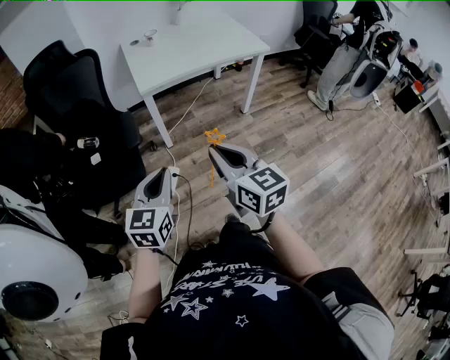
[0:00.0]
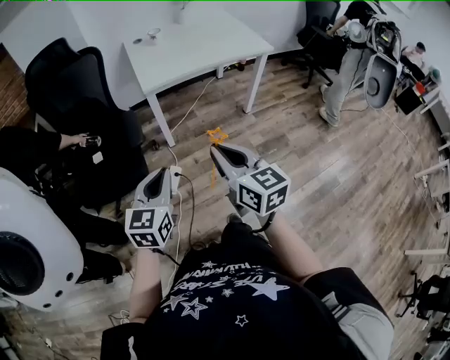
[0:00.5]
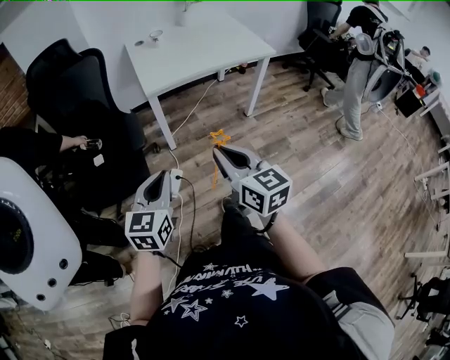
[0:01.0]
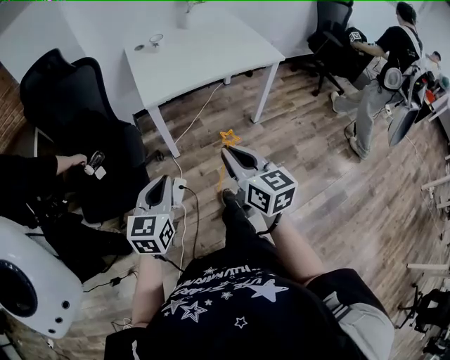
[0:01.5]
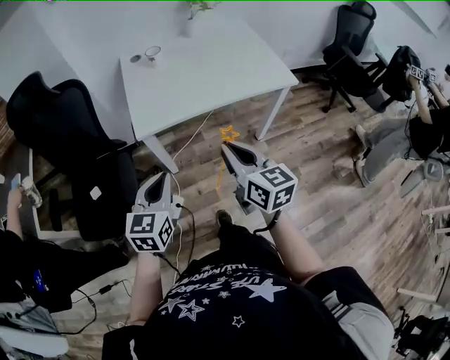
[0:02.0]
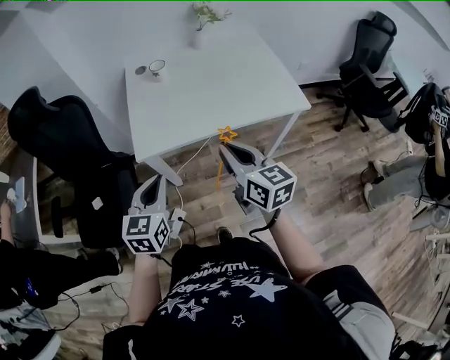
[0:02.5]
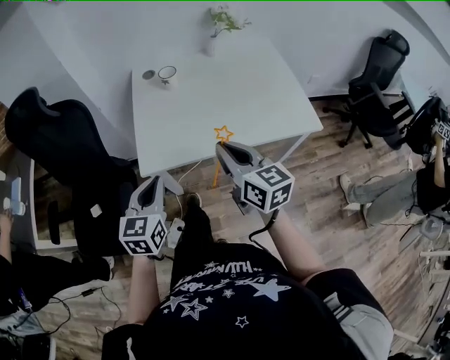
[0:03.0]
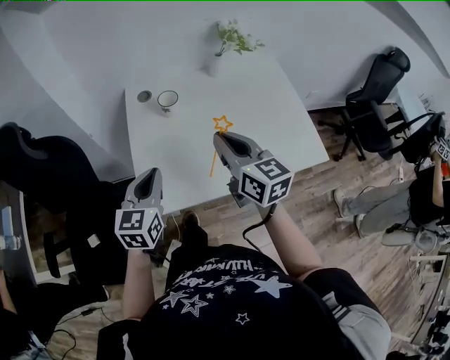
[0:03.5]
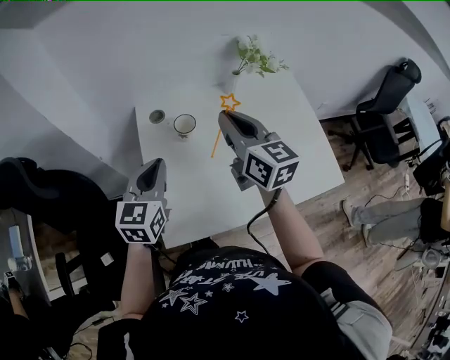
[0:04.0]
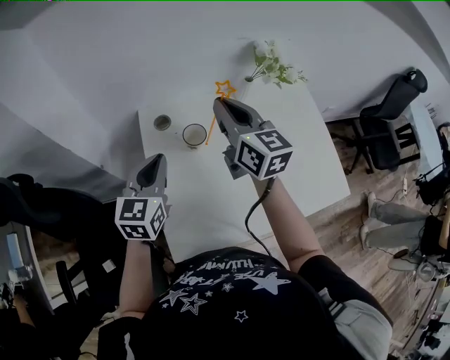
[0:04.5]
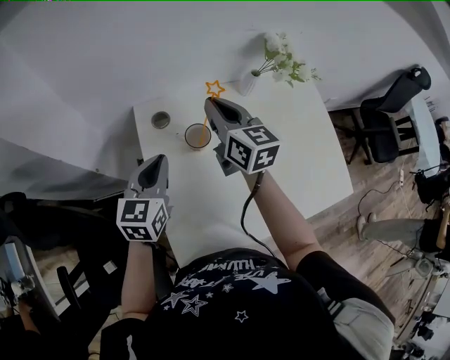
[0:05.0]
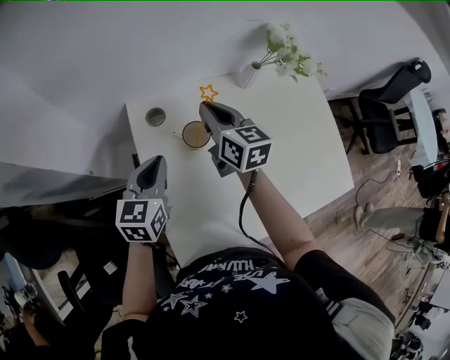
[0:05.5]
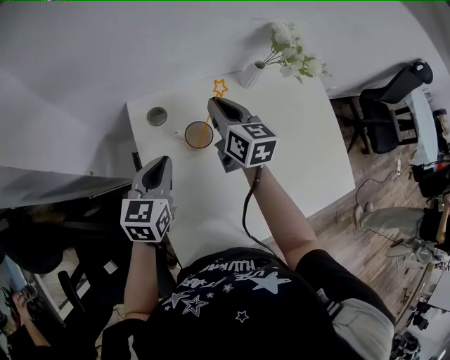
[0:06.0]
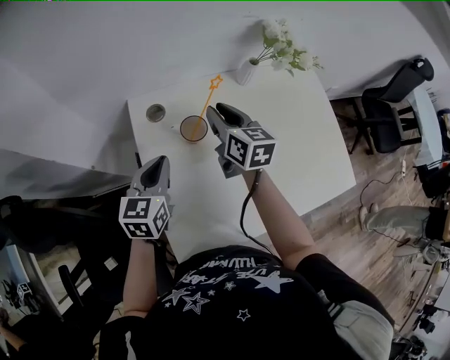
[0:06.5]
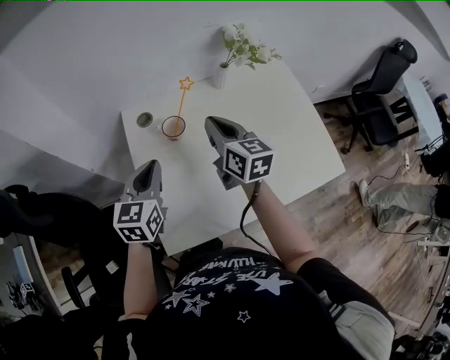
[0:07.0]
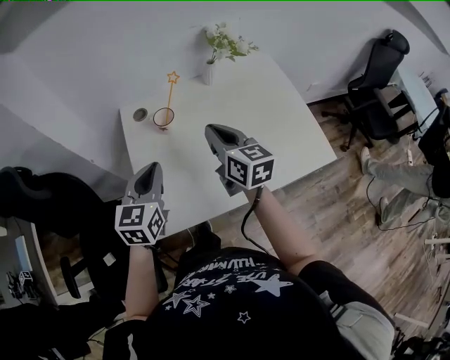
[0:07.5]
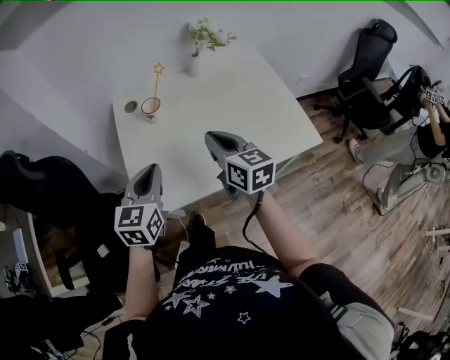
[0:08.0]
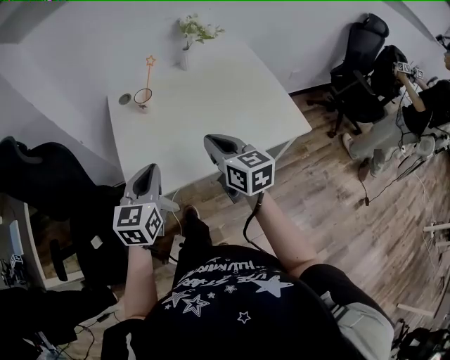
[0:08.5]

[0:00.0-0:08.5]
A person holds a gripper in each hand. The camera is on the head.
0:00.0 to 0:02.0: Both grippers move forward, about 30 cm.
0:02.0 to 0:04.0: Both grippers are carried forward, about 50 cm.
0:04.0 to 0:06.5: The left gripper shifts roughly 15 cm downward and forward. Meanwhile the right gripper heads downward and forward, covering some 20 cm, and opens up.
0:06.5 to 0:08.5: The right gripper is displaced backward by approximately 35 cm, and closes up. The left gripper travels backward and to the right by approximately 30 cm.

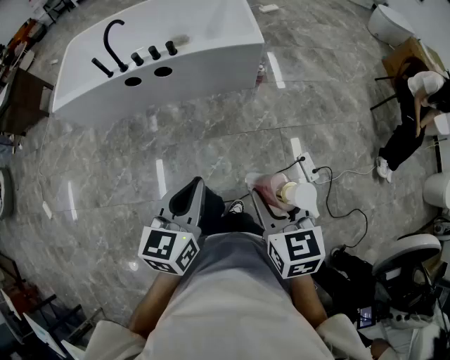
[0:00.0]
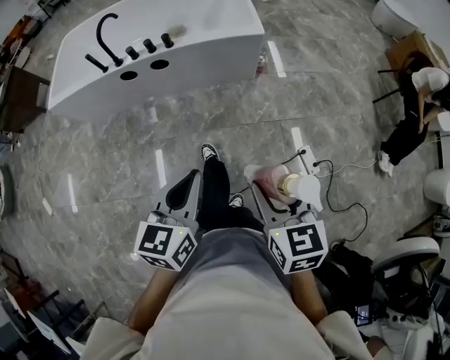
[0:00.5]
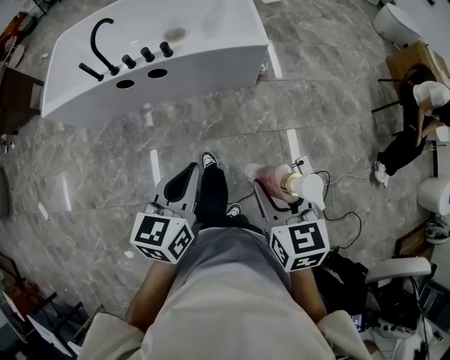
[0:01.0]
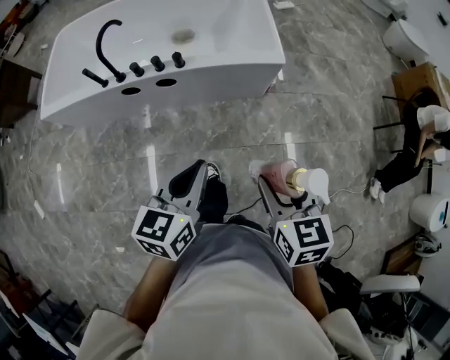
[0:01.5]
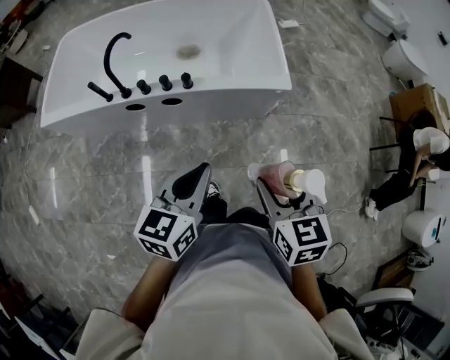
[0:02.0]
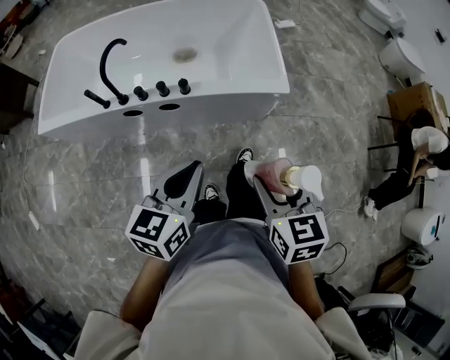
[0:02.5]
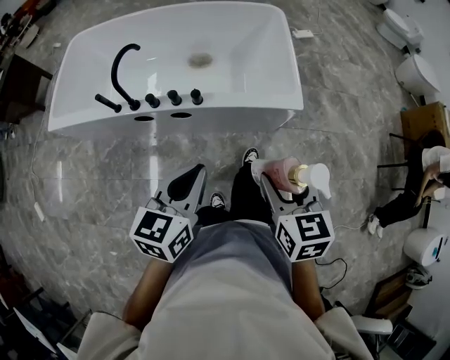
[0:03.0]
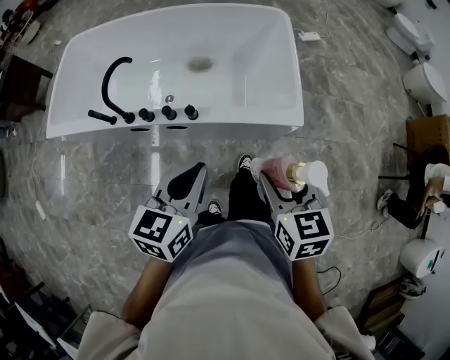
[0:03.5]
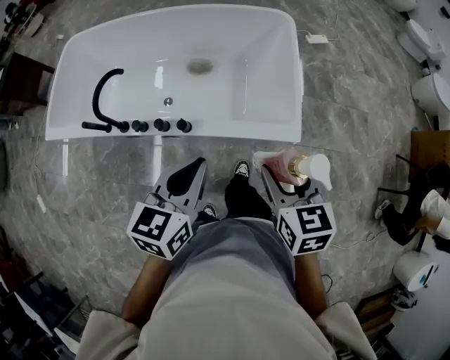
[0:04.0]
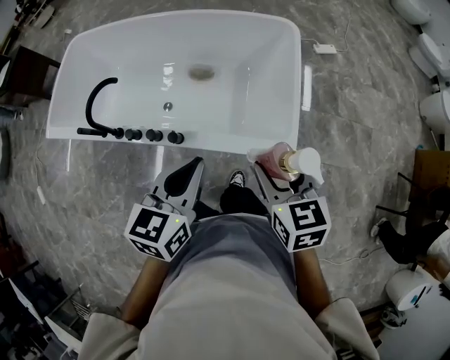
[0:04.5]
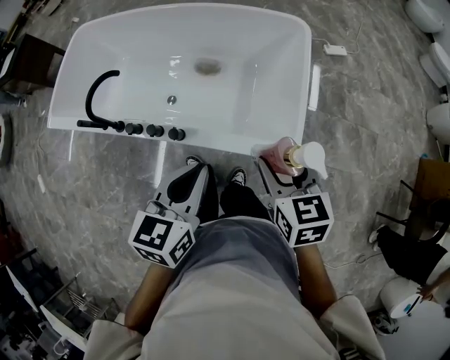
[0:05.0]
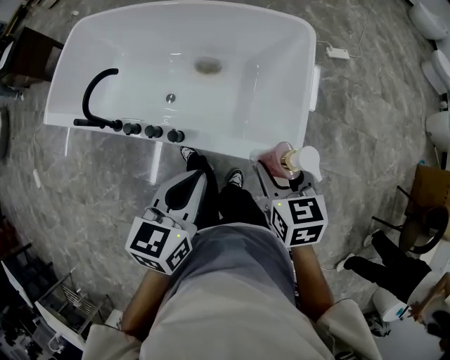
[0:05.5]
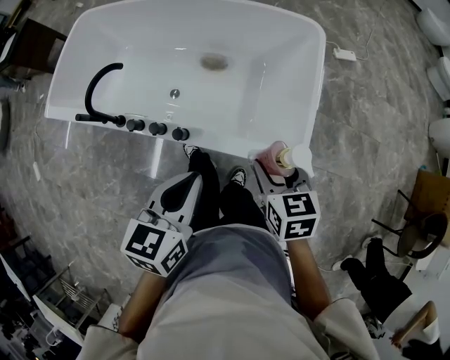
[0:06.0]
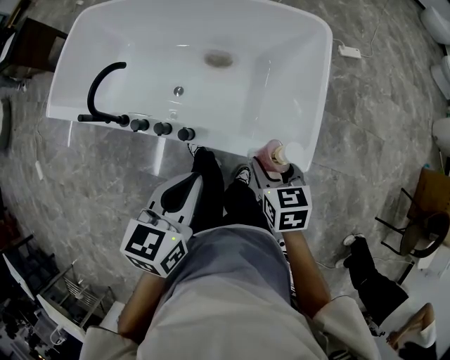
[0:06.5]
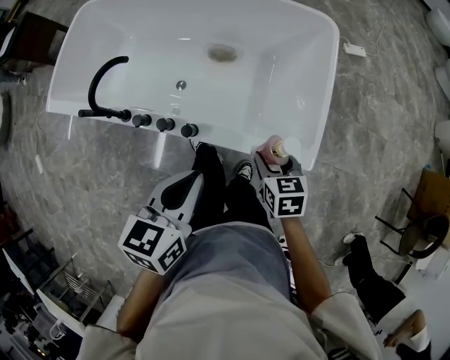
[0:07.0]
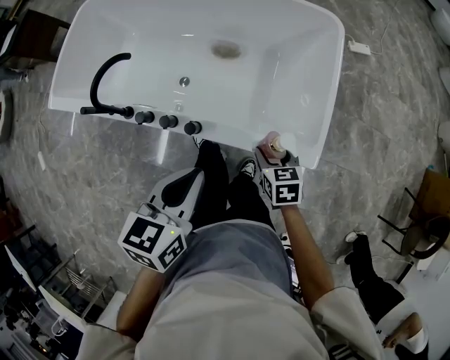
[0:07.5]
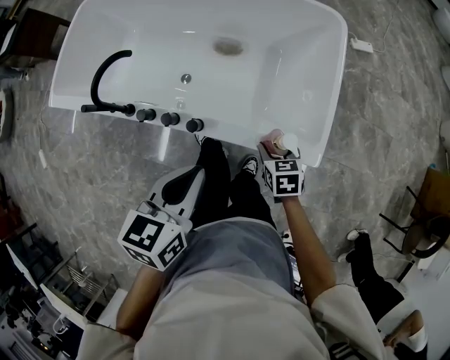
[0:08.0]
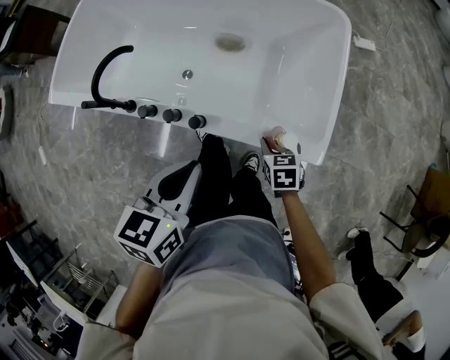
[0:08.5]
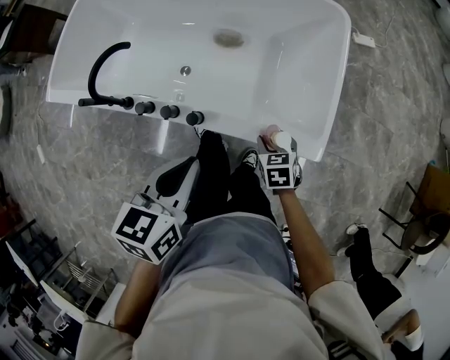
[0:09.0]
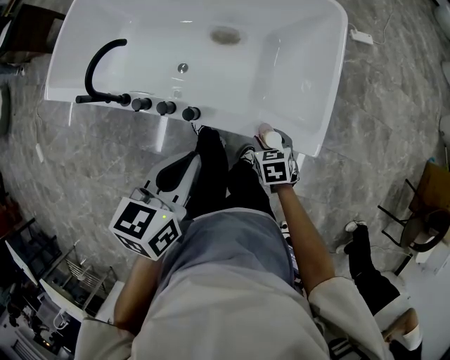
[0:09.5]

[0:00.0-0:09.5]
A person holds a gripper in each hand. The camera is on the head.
0:00.0 to 0:02.0: The grippers both shift forward by roughly 35 cm.
0:02.0 to 0:04.0: Both grippers move forward, approximately 30 cm.
0:04.0 to 0:05.5: The left gripper heads forward, covering some 5 cm, while the right gripper travels forward and downward by about 15 cm.
0:05.5 to 0:07.5: The right gripper travels downward by roughly 15 cm, while the left gripper goes some 5 cm to the left.
0:07.5 to 0:09.5: The right gripper goes about 5 cm downward.

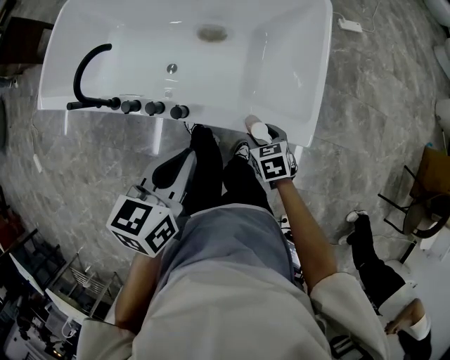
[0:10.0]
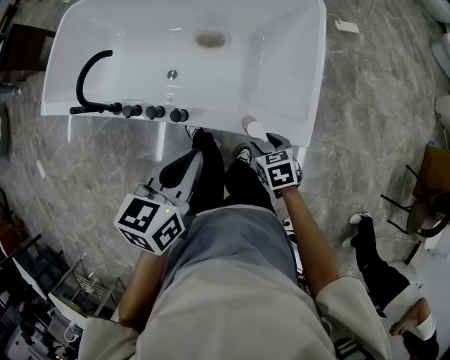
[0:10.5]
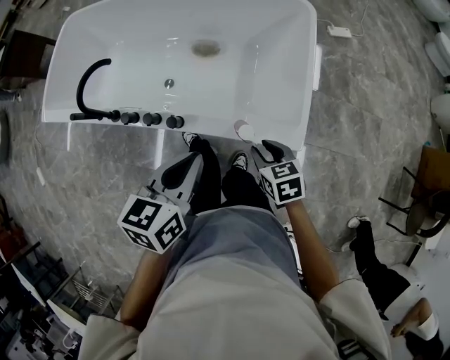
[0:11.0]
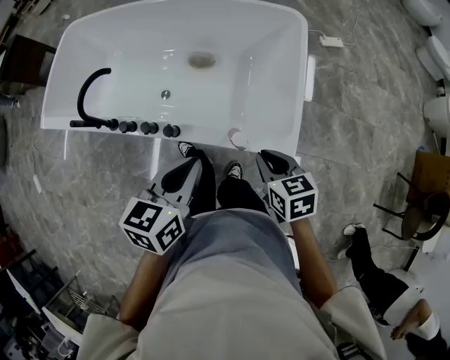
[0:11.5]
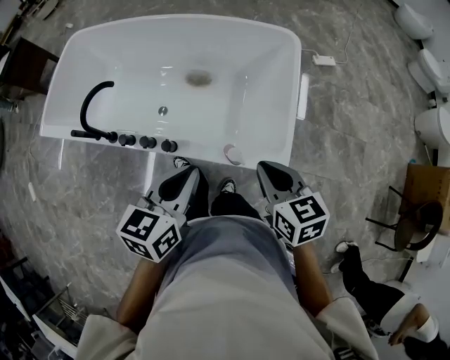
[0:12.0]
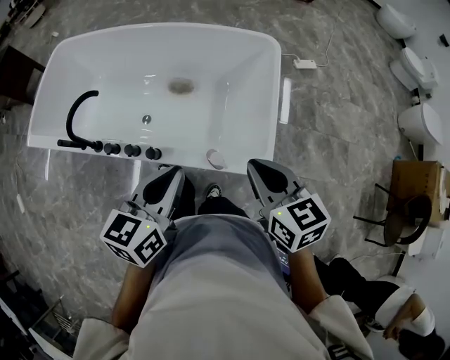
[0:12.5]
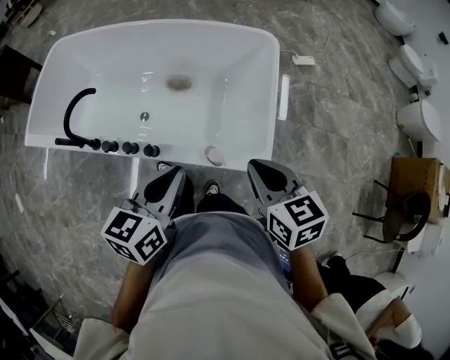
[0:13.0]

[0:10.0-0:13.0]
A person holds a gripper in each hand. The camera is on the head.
0:10.0 to 0:11.5: The left gripper moves some 5 cm; the right gripper goes roughly 15 cm upward, and closes up.
0:11.5 to 0:13.0: The right gripper shifts some 15 cm upward.

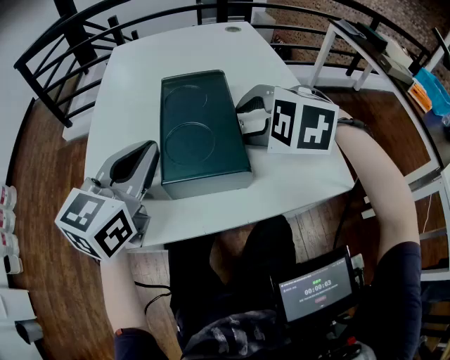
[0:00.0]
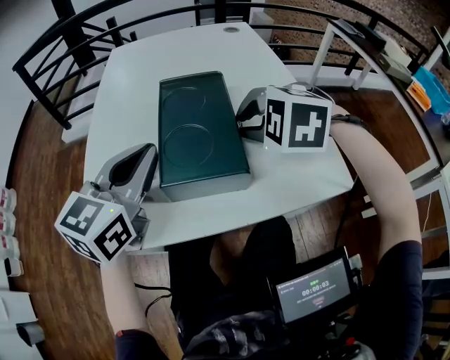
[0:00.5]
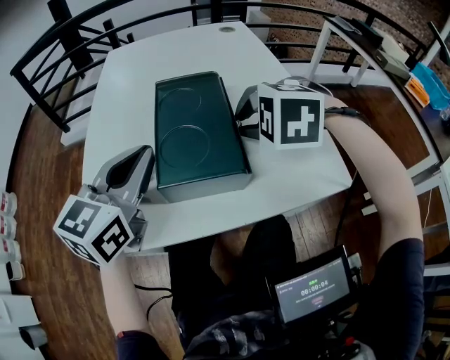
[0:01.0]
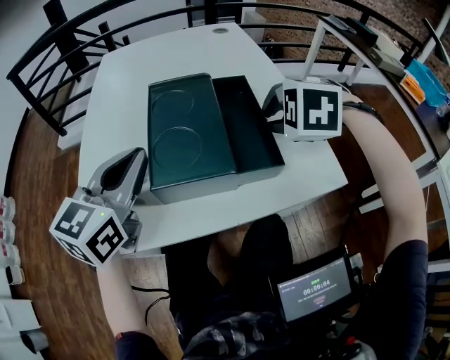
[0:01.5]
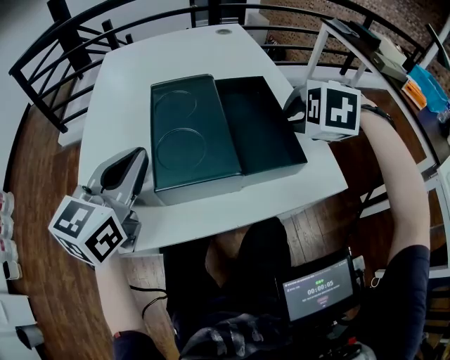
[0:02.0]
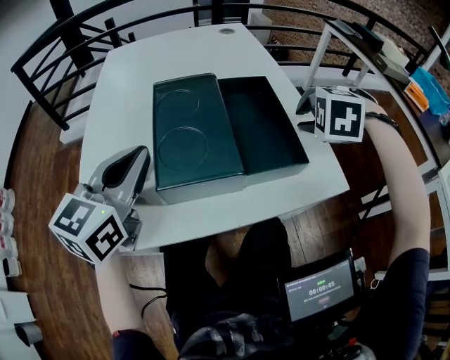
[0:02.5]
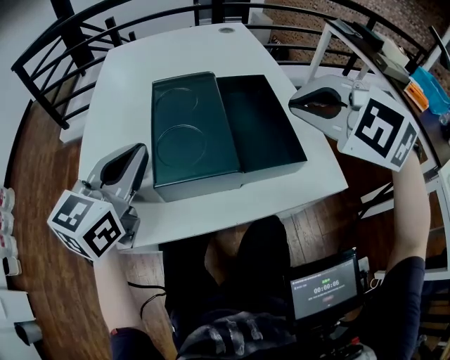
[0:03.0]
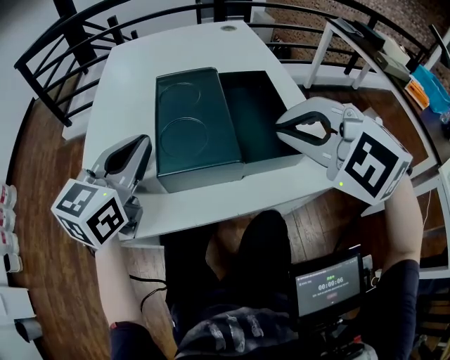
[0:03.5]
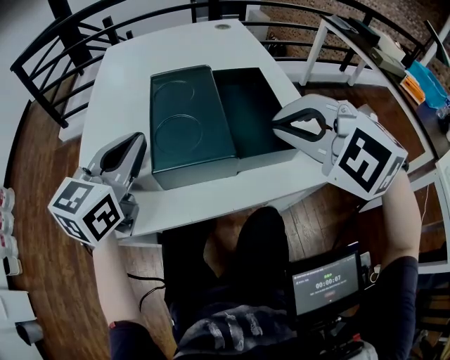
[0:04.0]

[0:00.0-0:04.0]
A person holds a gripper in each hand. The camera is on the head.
0:00.0 to 0:02.0: The right gripper is displaced to the right by approximately 10 cm, and closes its fingers.
0:02.0 to 0:04.0: The right gripper shifts about 15 cm backward, upward and to the left, and turns by approximately 30 degrees.

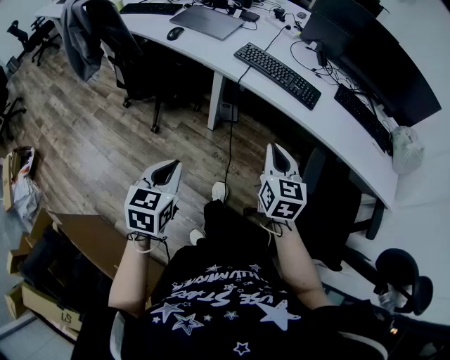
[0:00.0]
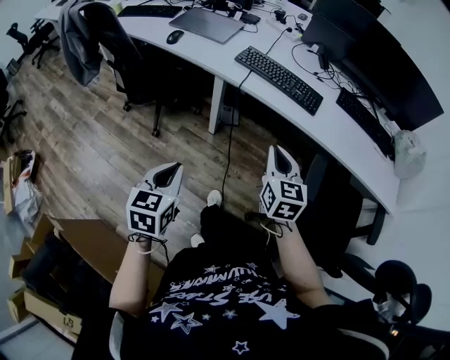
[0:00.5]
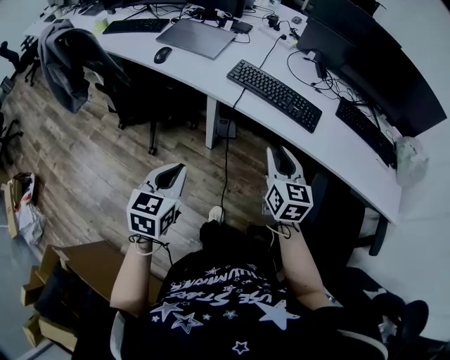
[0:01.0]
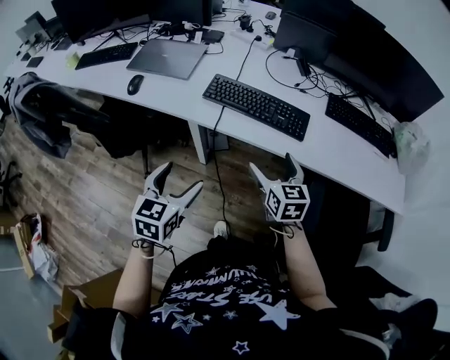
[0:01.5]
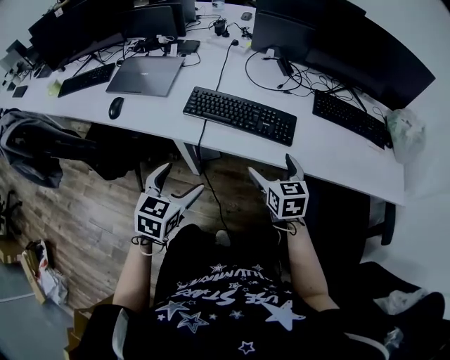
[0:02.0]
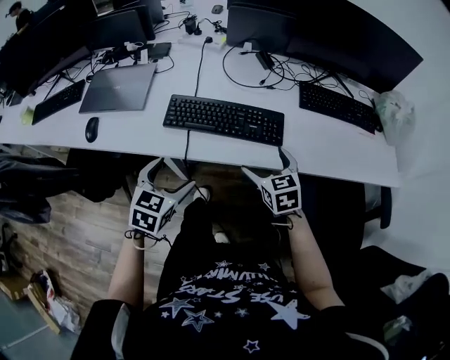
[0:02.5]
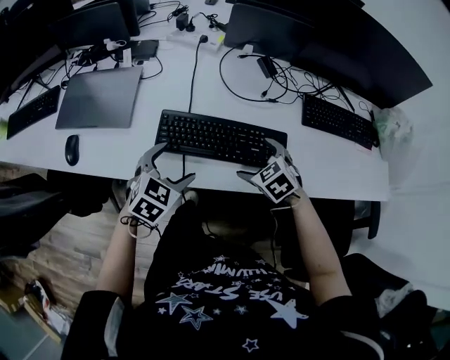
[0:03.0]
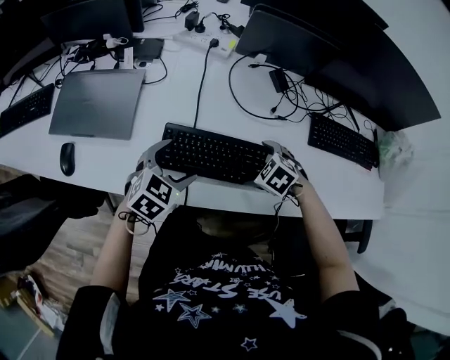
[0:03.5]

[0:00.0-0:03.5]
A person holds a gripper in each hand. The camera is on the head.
0:00.0 to 0:02.0: Both grippers travel together forward, roughly 30 cm. The right gripper opens its fingers. The left gripper changes its angle by roughly 20 degrees, and opens.
0:02.0 to 0:03.5: The left gripper is displaced forward by approximately 30 cm, and turns by approximately 30 degrees, while the right gripper heads forward and downward, covering some 25 cm, and tilts its fingers some 50 degrees downward.
